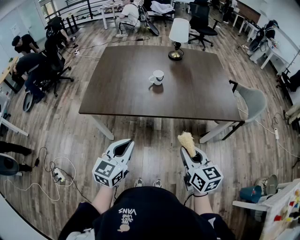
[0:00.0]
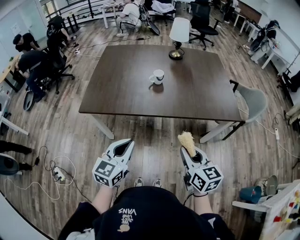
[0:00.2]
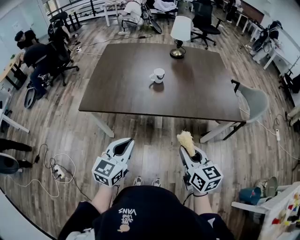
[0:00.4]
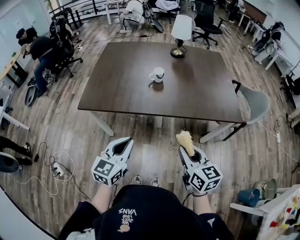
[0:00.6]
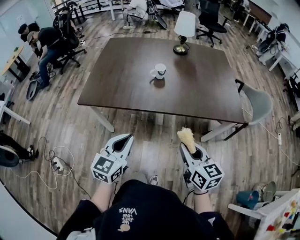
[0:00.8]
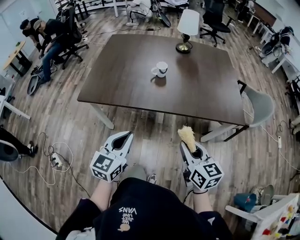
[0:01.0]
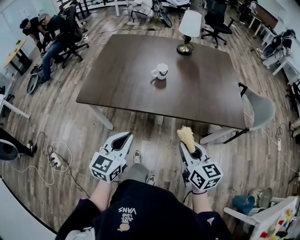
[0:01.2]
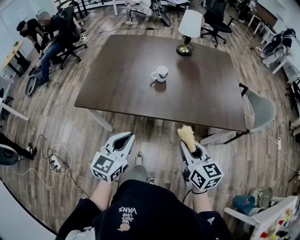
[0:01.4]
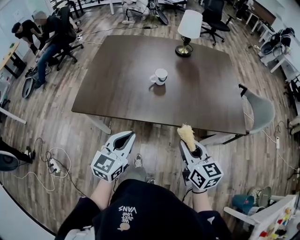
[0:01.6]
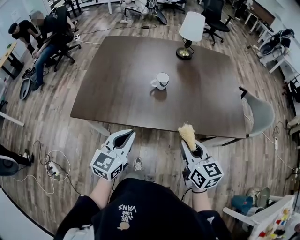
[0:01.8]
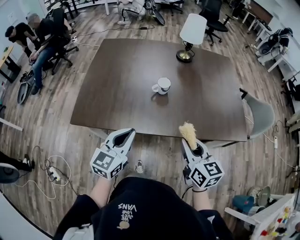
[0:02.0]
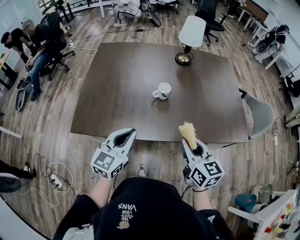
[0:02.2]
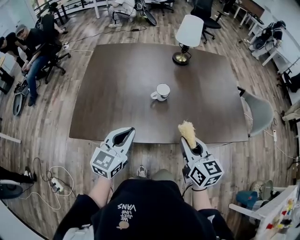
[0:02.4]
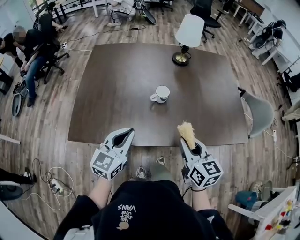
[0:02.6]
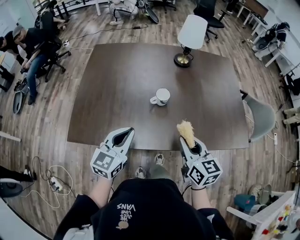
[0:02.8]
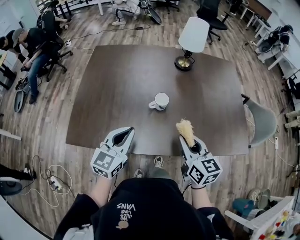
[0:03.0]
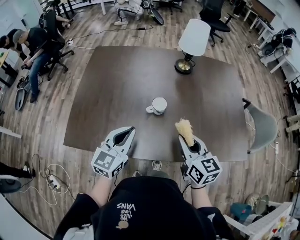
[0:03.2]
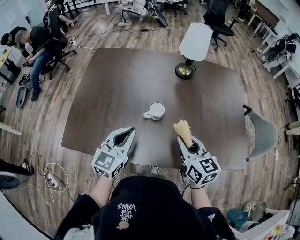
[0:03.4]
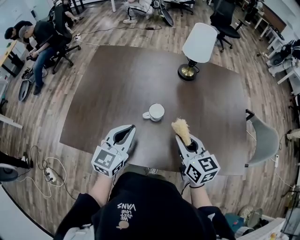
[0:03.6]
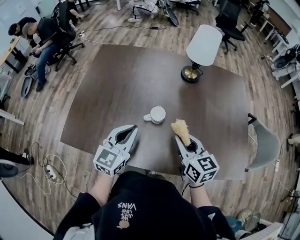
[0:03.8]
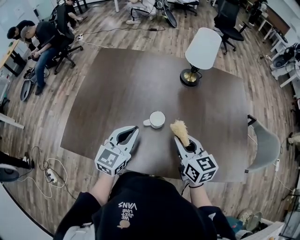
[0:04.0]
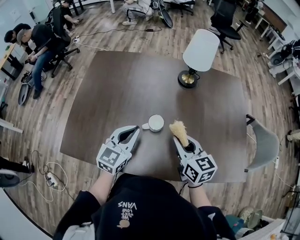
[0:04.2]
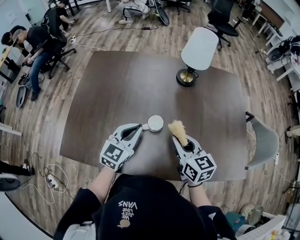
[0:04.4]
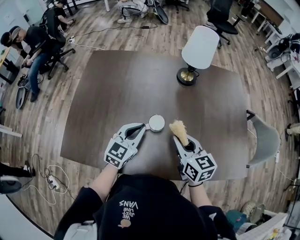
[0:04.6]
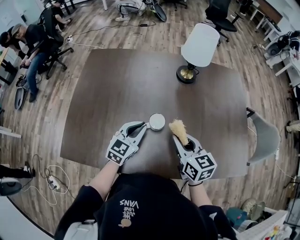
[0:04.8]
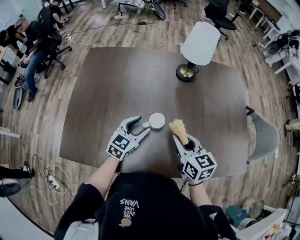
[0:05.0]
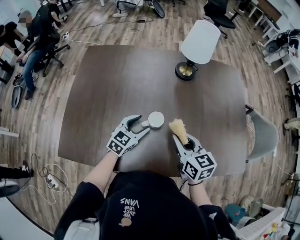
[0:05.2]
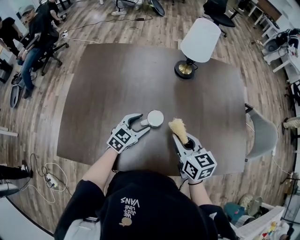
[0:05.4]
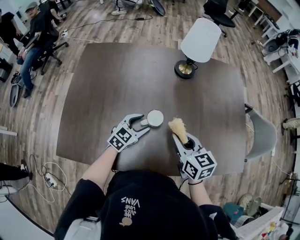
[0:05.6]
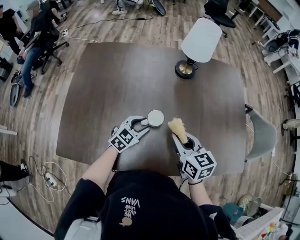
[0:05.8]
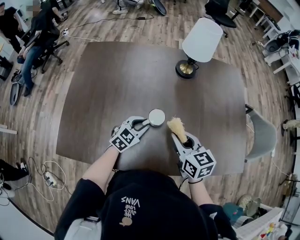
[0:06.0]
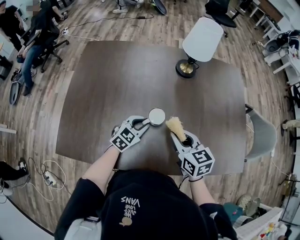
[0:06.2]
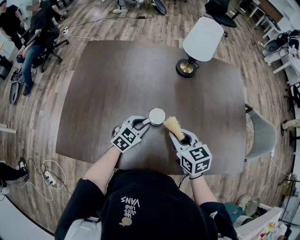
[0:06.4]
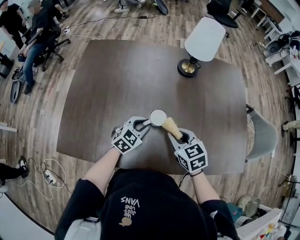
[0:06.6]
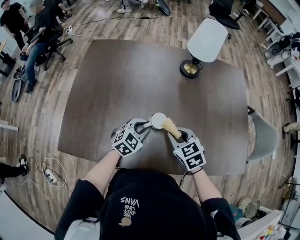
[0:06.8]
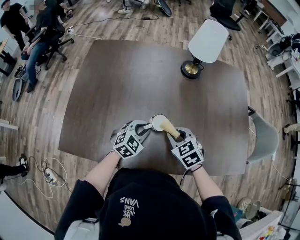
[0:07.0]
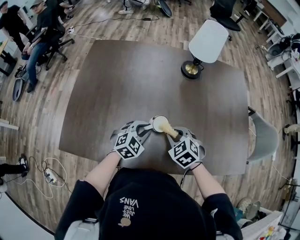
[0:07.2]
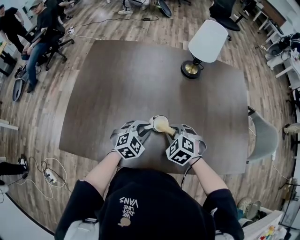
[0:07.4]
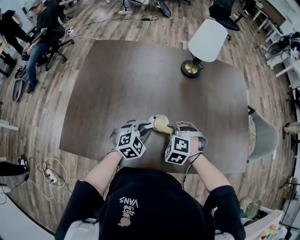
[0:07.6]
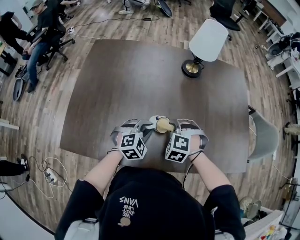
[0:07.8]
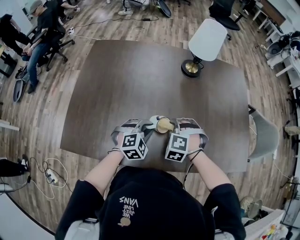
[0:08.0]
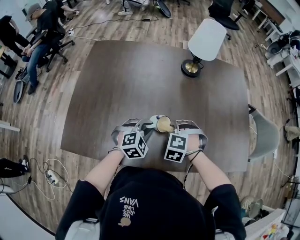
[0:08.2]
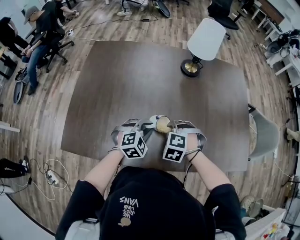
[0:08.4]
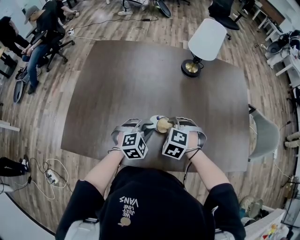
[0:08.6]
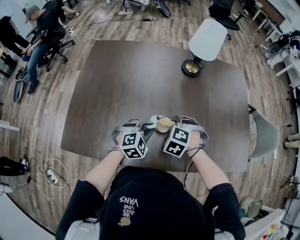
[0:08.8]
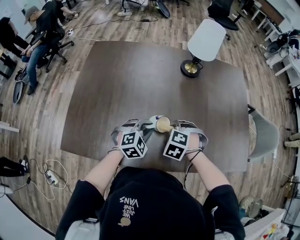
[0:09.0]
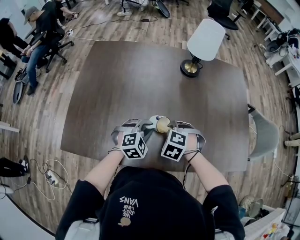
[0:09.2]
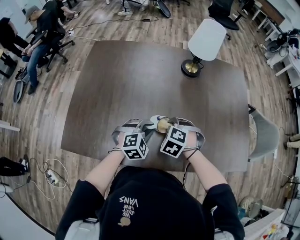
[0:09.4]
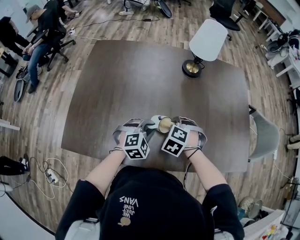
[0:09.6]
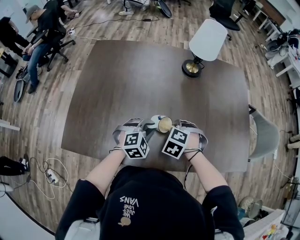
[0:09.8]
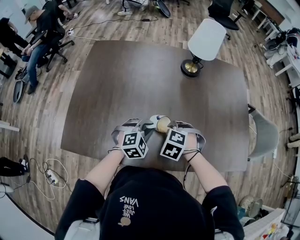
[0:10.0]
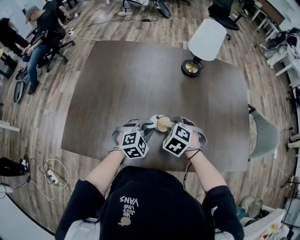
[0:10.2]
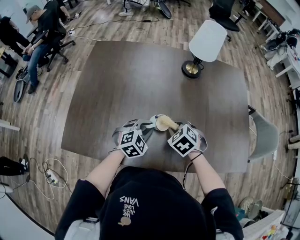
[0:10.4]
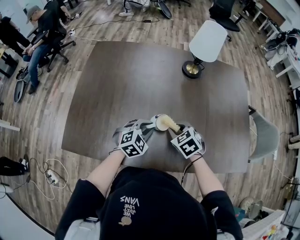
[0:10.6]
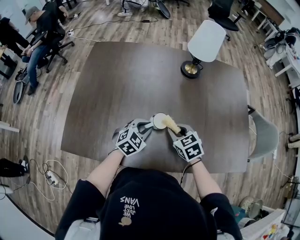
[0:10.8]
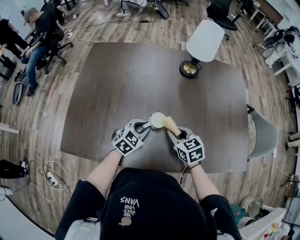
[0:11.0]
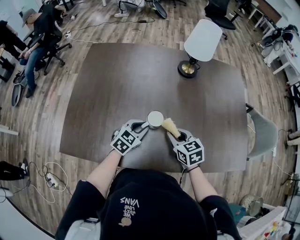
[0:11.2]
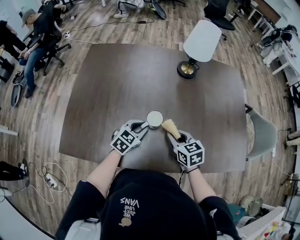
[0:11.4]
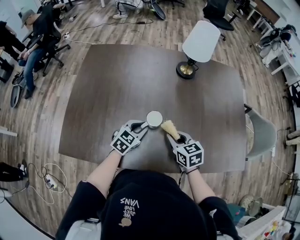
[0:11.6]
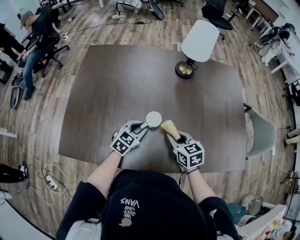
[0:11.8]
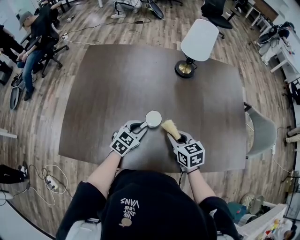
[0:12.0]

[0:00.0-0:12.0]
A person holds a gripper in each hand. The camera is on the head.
0:00.0 to 0:01.6: The grippers both shift forward by roughly 10 cm.
0:01.6 to 0:03.0: Both grippers move forward, about 20 cm.
0:03.0 to 0:04.4: The left gripper travels forward and to the right by roughly 15 cm, while the right gripper travels forward by about 15 cm.
0:04.4 to 0:06.0: The left gripper travels downward by approximately 15 cm, changes its angle by roughly 20 degrees, and opens.
0:06.0 to 0:07.6: The right gripper shifts about 10 cm downward, and rotates around the line of its fingers by approximately 70 degrees, counterclockwise from behind. The left gripper rotates some 20 degrees.
0:07.6 to 0:09.0: The grippers stay close to where they were, moving slightly.
0:09.0 to 0:10.4: The right gripper rotates approximately 30 degrees.
0:10.4 to 0:12.0: The right gripper swivels about 40 degrees; the left gripper rotates roughly 30 degrees.

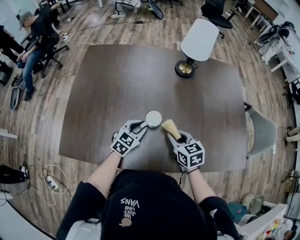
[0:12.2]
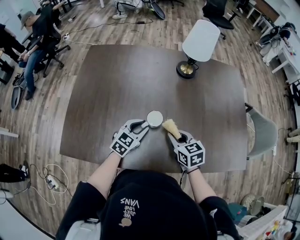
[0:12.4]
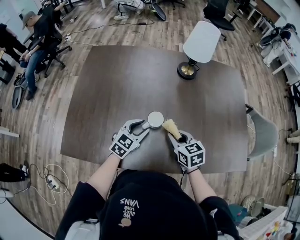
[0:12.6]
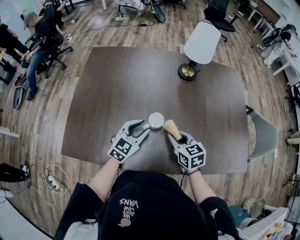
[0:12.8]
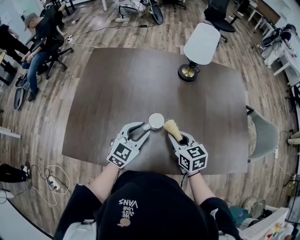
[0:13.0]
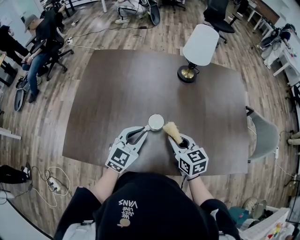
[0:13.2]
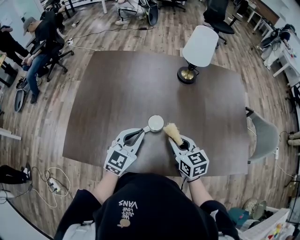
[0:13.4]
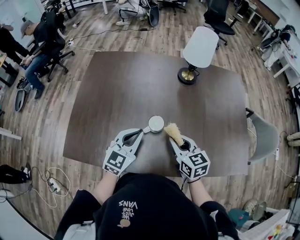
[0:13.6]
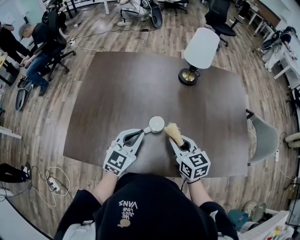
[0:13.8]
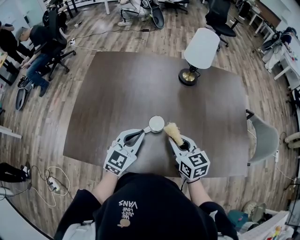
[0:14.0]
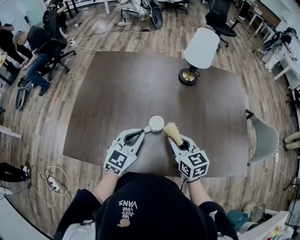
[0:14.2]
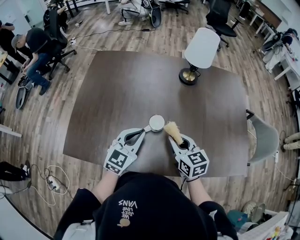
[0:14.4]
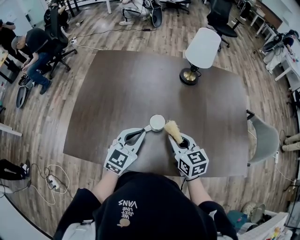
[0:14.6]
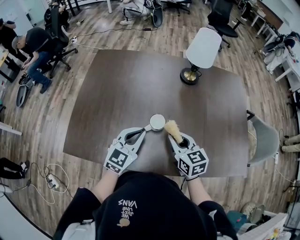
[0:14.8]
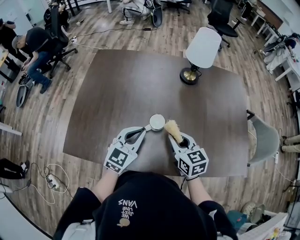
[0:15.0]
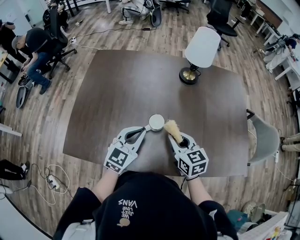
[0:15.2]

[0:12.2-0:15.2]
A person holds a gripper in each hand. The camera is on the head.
0:12.2 to 0:13.8: The left gripper shifts about 15 cm upward; the right gripper heads upward, covering some 5 cm.
0:13.8 to 0:15.2: Both grippers stay about where they are.

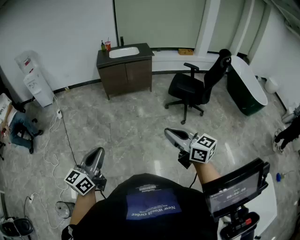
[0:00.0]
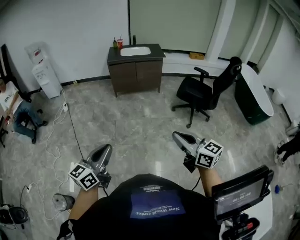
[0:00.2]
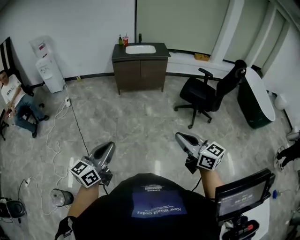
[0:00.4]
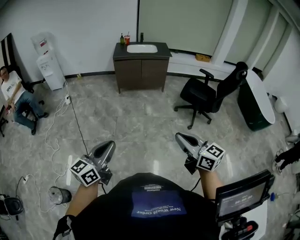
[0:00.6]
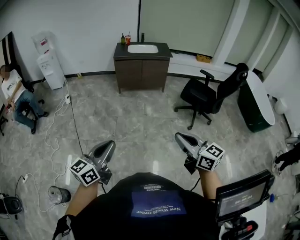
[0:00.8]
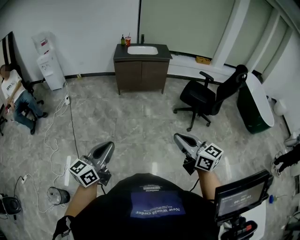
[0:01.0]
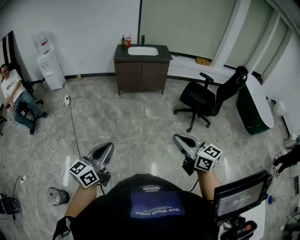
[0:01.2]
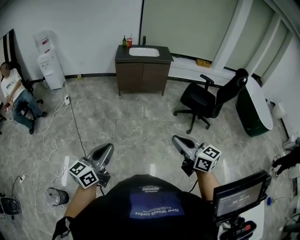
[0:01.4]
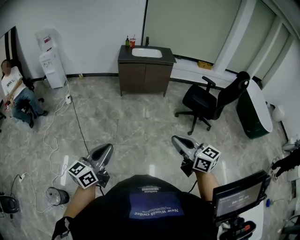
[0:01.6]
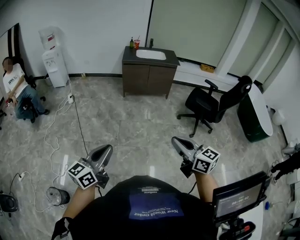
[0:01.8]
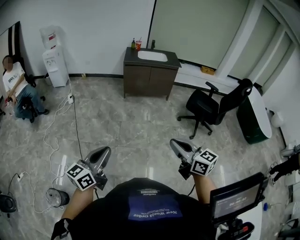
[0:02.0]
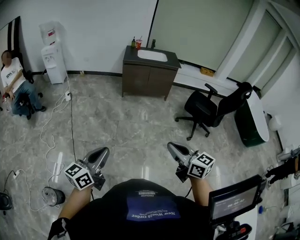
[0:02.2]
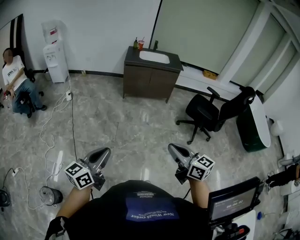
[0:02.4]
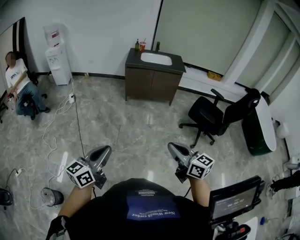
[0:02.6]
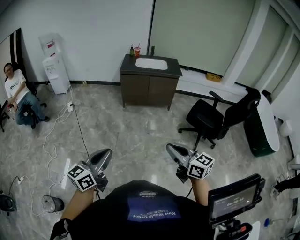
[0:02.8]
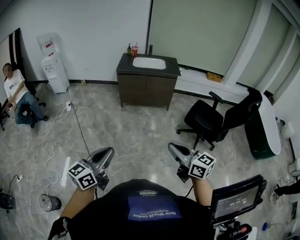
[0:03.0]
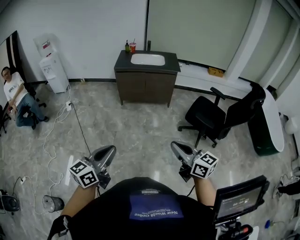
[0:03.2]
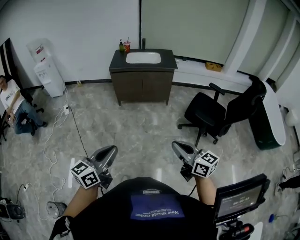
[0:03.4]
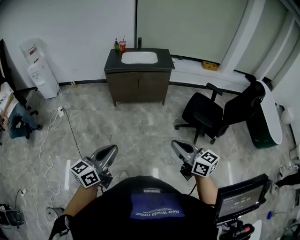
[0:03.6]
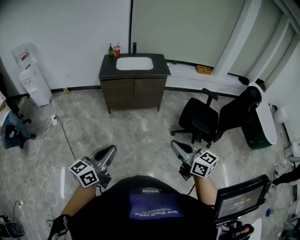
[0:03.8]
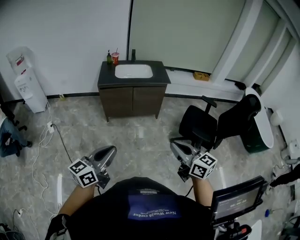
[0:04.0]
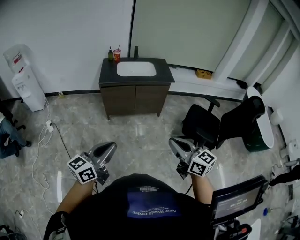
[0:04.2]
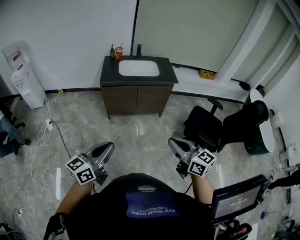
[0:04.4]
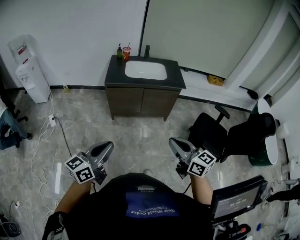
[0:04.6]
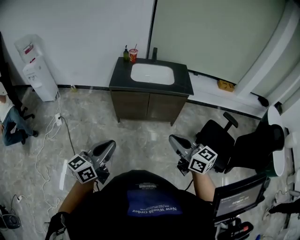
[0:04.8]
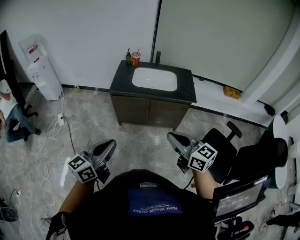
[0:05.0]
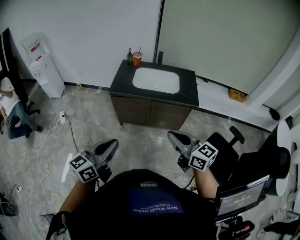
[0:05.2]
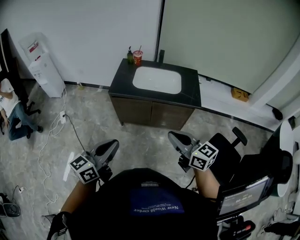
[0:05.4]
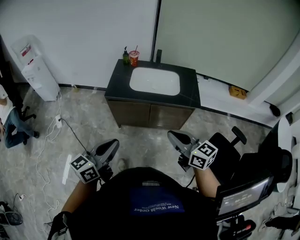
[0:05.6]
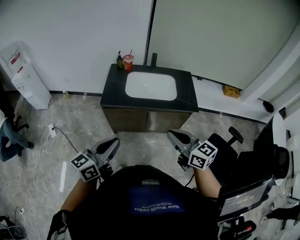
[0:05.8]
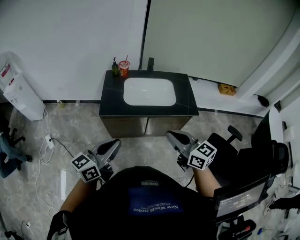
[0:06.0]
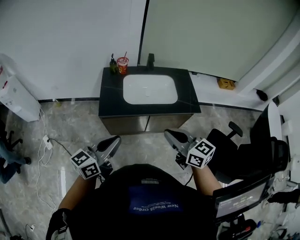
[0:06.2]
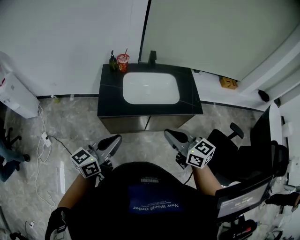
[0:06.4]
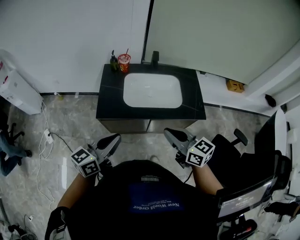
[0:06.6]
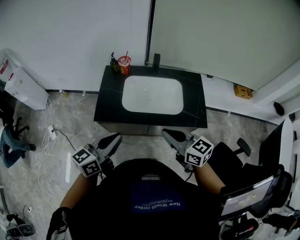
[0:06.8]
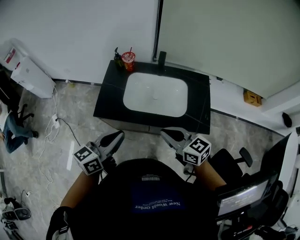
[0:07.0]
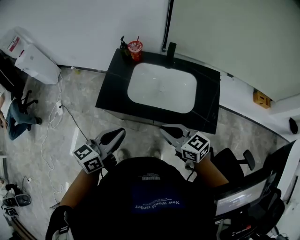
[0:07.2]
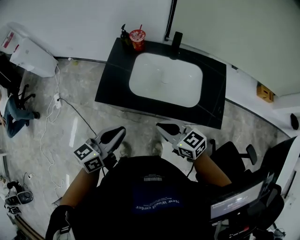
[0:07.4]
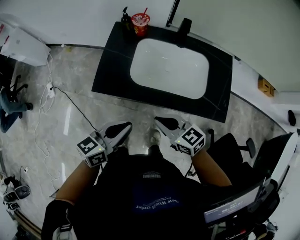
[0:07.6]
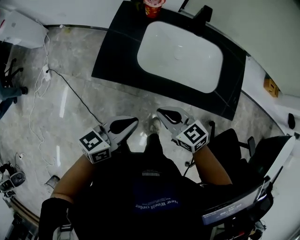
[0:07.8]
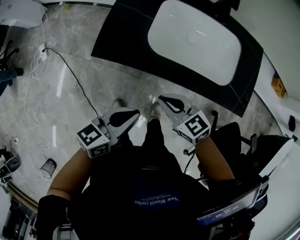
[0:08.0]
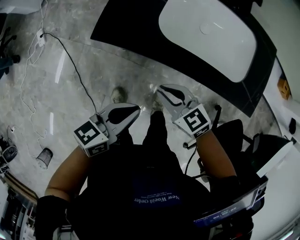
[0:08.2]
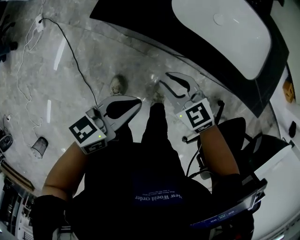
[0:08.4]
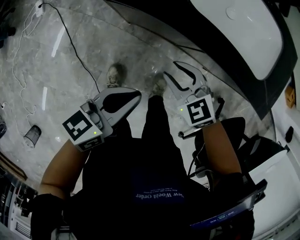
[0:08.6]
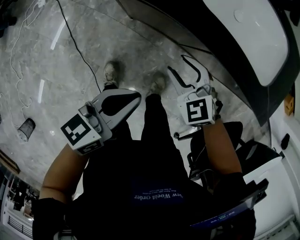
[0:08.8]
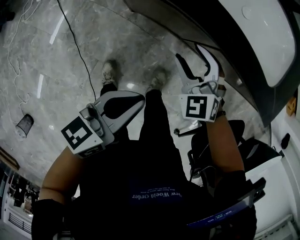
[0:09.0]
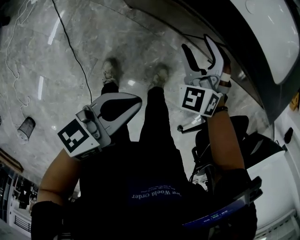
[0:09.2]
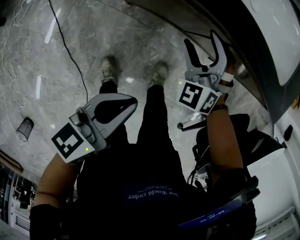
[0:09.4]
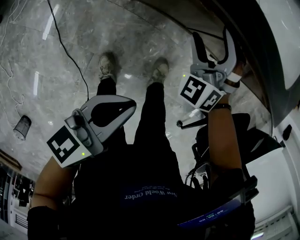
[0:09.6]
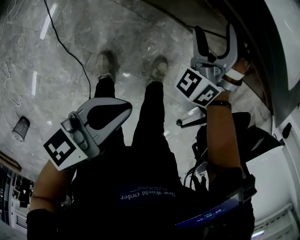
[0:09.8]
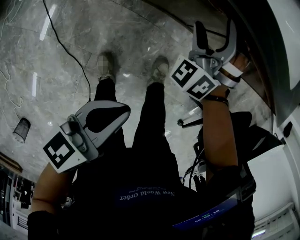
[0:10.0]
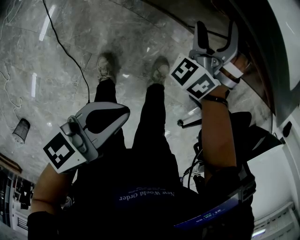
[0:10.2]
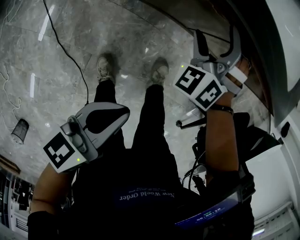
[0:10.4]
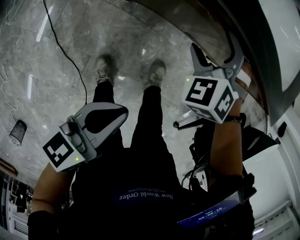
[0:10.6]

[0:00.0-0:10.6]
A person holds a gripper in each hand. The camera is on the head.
0:00.0 to 0:01.6: The grippers both shift to the left by some 5 cm.
0:01.6 to 0:03.0: Both grippers move forward and to the right, roughly 25 cm.
0:03.0 to 0:04.6: The pair of grippers is taken forward, some 40 cm.
0:04.6 to 0:06.0: Both grippers travel together forward, about 35 cm.
0:06.0 to 0:07.6: The left gripper travels forward, downward and to the right by roughly 25 cm, while the right gripper heads downward and forward, covering roughly 30 cm, and changes its angle by roughly 30 degrees.
0:07.6 to 0:09.0: The left gripper moves downward and backward, some 25 cm; the right gripper shifts about 25 cm downward, twists some 50 degrees counterclockwise, seen from behind, and opens.
0:09.0 to 0:10.6: The right gripper rotates some 30 degrees, and opens. Meanwhile the left gripper ends up some 10 cm from where it was.
